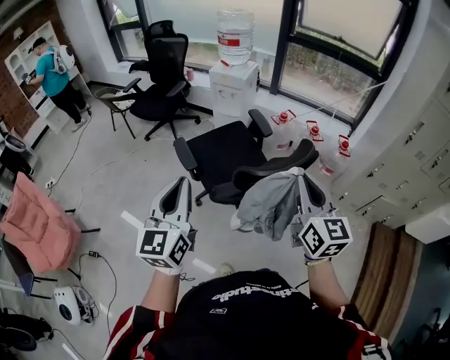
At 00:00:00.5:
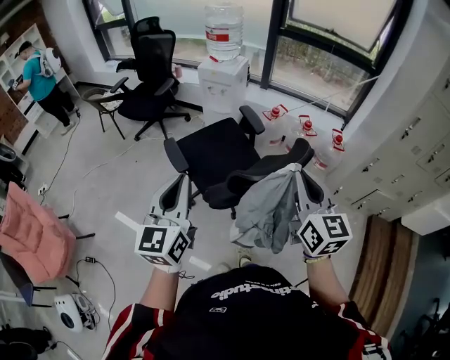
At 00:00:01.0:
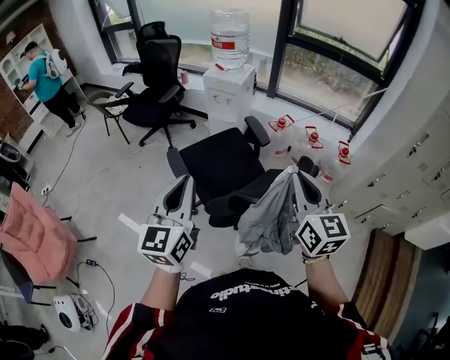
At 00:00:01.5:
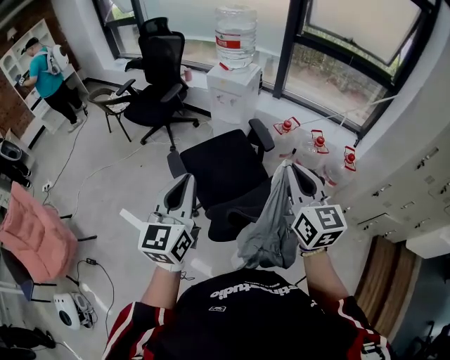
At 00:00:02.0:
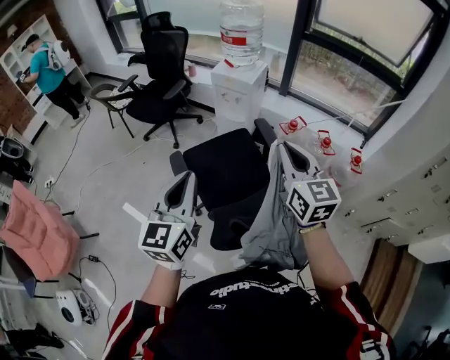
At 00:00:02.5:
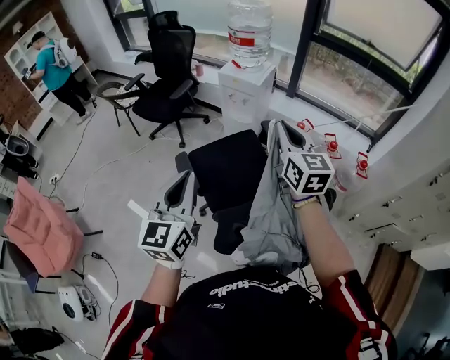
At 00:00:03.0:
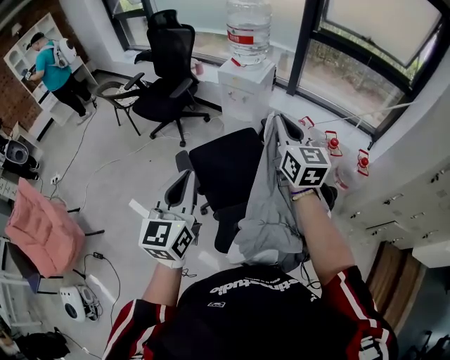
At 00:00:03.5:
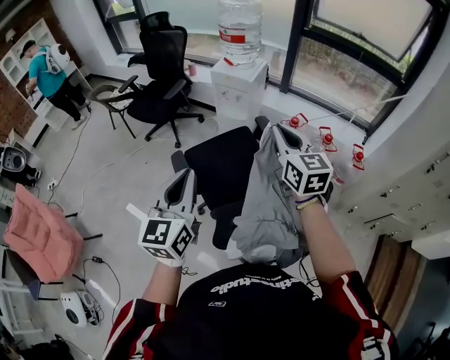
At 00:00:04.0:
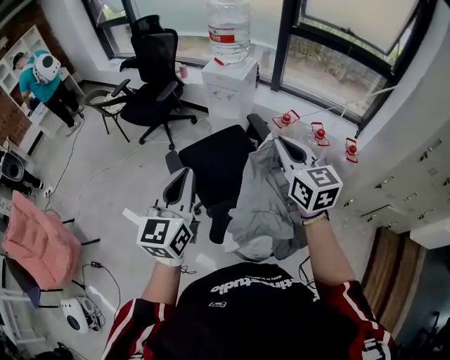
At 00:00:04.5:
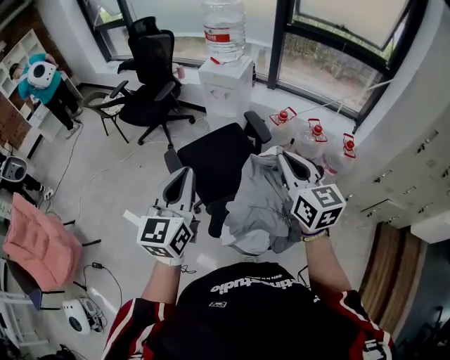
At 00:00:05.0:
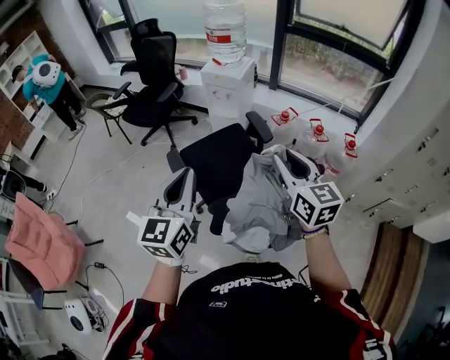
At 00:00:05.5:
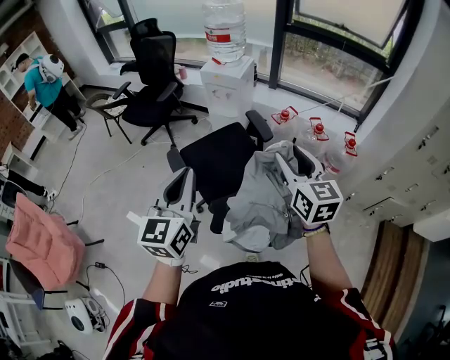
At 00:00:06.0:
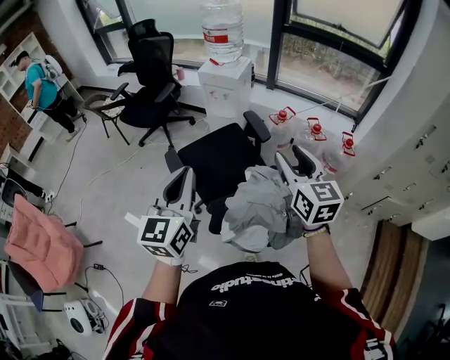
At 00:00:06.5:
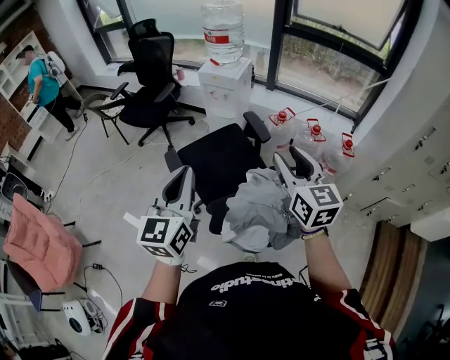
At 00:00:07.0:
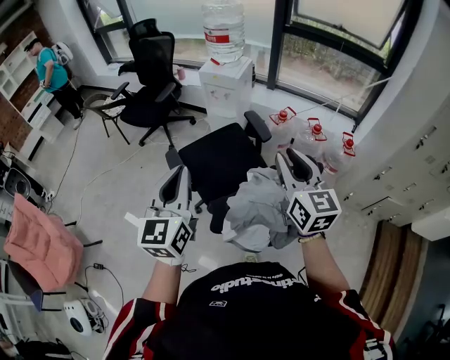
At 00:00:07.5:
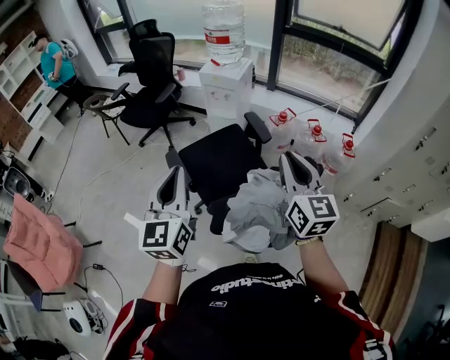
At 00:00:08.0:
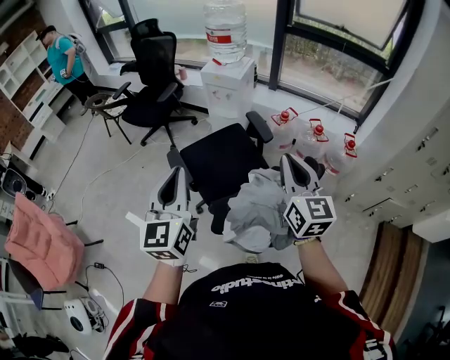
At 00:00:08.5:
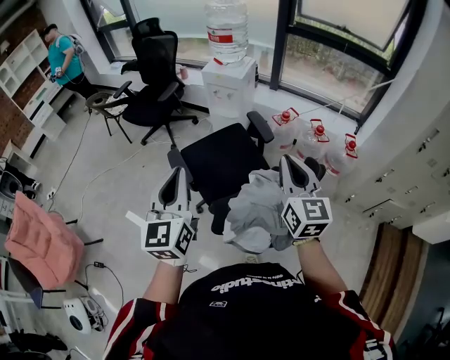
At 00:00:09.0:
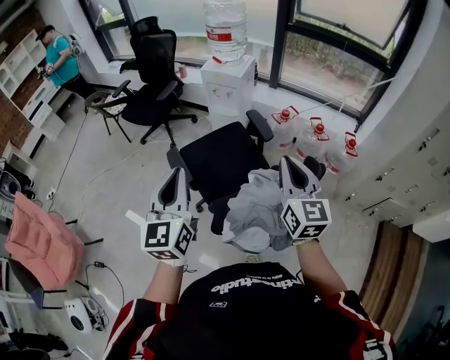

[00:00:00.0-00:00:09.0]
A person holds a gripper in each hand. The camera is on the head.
00:00:00.0 to 00:00:02.0: Both grippers move forward, some 30 cm.
00:00:02.0 to 00:00:04.5: The right gripper moves backward, some 10 cm.
00:00:04.5 to 00:00:07.0: The right gripper opens up.
00:00:07.0 to 00:00:09.0: The right gripper closes.

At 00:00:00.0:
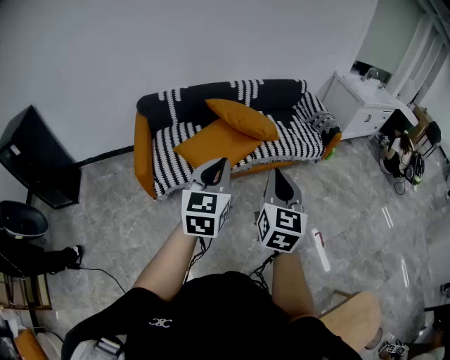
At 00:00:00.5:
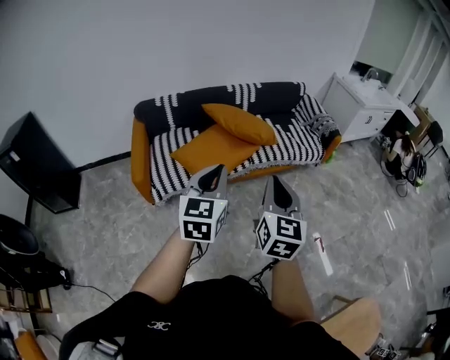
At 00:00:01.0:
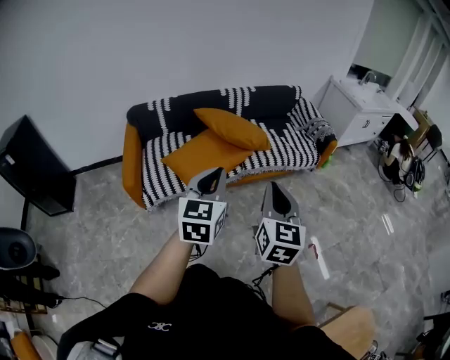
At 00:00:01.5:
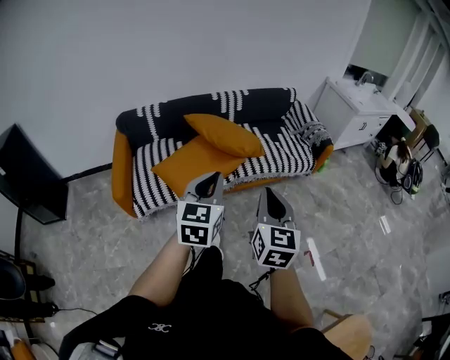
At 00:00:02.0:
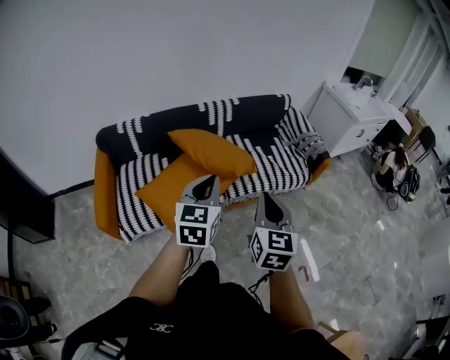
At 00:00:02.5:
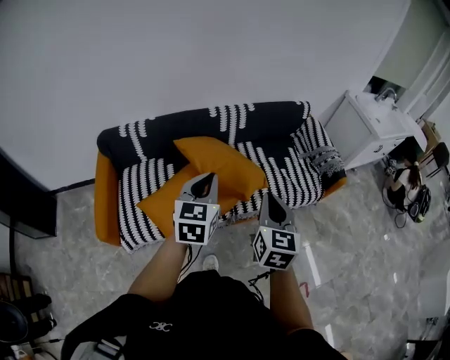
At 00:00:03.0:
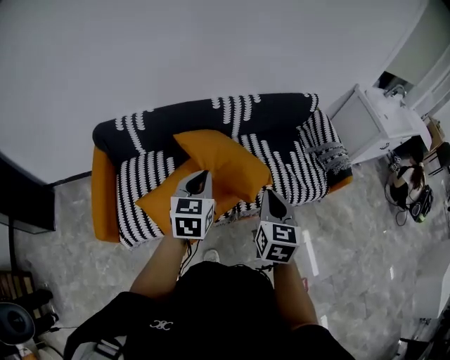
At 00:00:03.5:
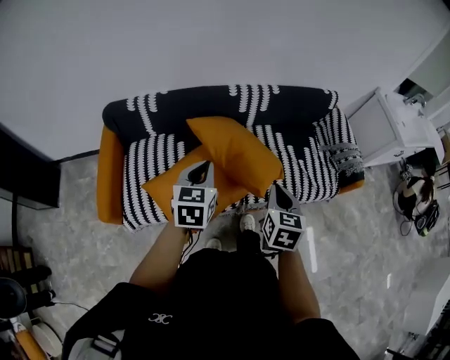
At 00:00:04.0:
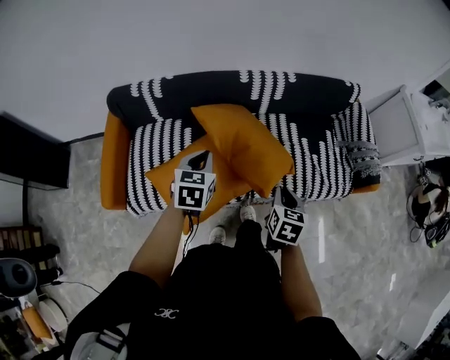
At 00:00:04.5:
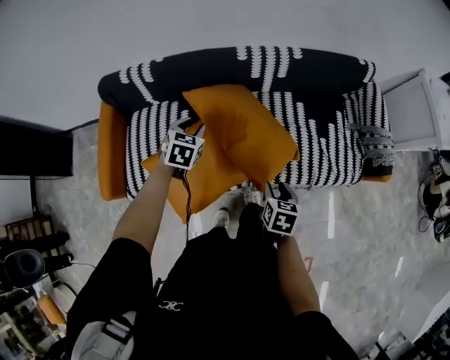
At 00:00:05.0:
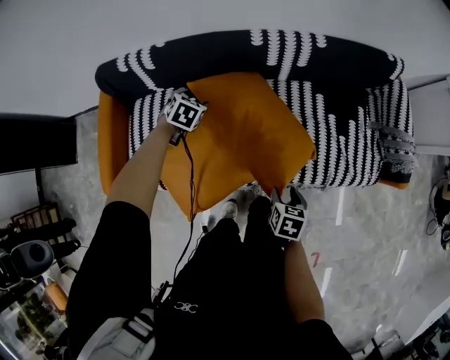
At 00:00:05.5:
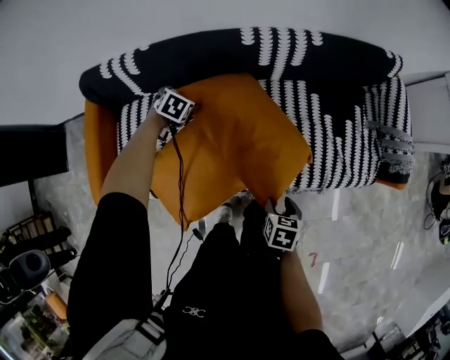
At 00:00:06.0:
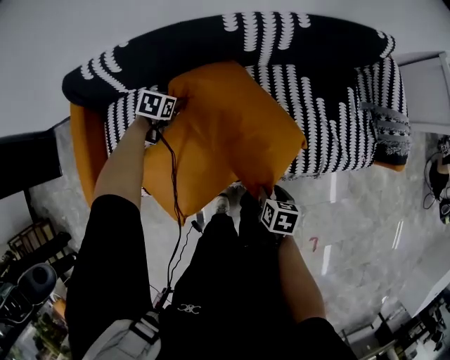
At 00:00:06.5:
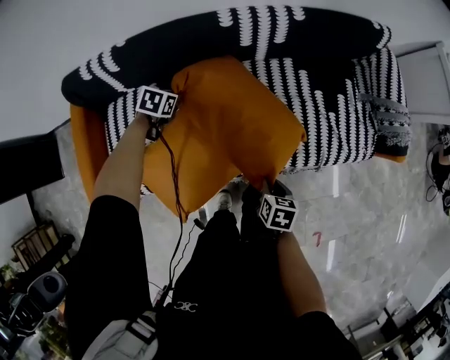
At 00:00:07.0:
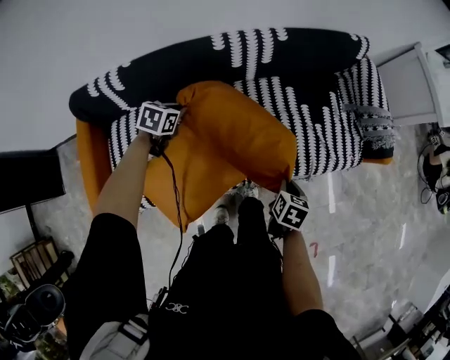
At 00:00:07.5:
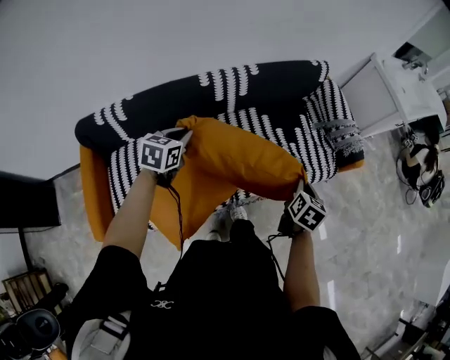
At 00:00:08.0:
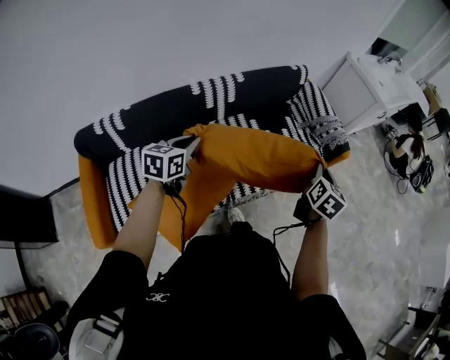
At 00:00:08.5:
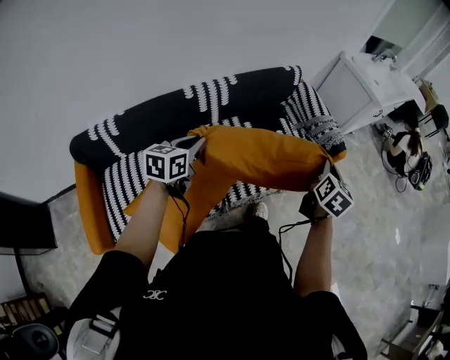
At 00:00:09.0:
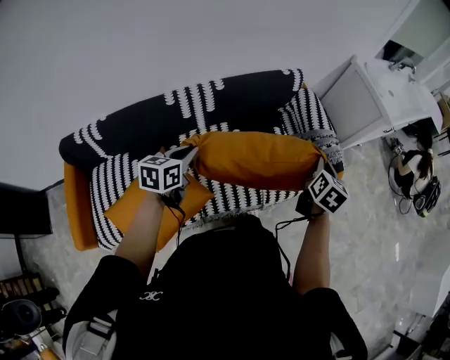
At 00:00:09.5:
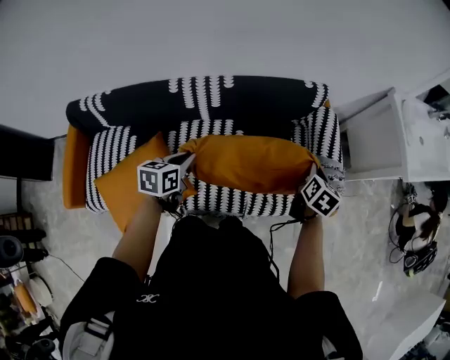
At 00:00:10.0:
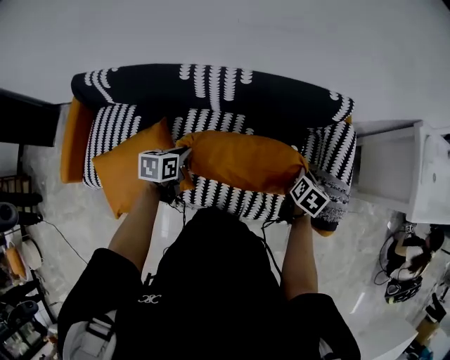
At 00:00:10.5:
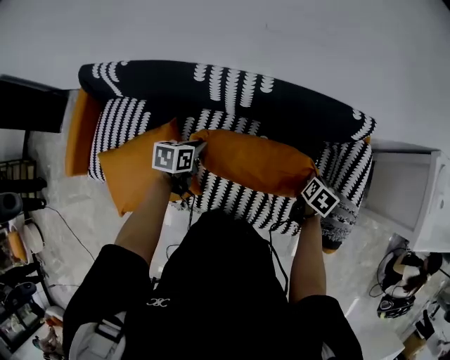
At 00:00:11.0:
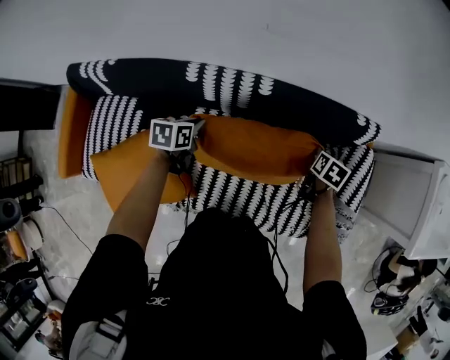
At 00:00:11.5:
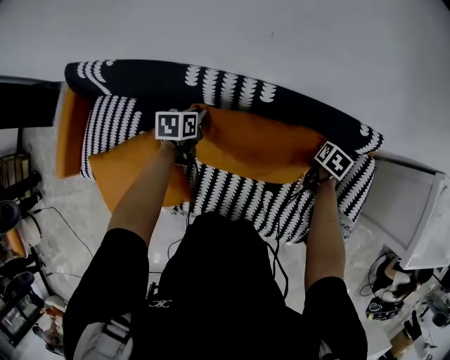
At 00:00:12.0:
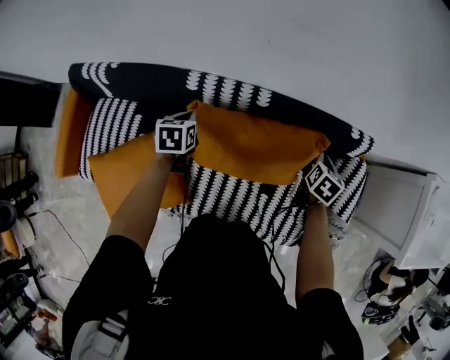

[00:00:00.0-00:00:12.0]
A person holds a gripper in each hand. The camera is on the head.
00:00:00.0 to 00:00:02.0: Both grippers move forward, roughly 30 cm.
00:00:02.0 to 00:00:04.0: The two grippers go about 35 cm forward and downward. The right gripper tilts its fingers some 30 degrees downward, while the left gripper changes its angle by about 30 degrees.
00:00:04.0 to 00:00:06.0: The left gripper is displaced downward and forward by approximately 40 cm, turns by some 30 degrees, and opens up; the right gripper travels downward by some 20 cm, swivels roughly 30 degrees, and opens.
00:00:06.0 to 00:00:08.0: The two grippers go approximately 35 cm upward. The right gripper angles its fingers upward, by roughly 40 degrees, and closes its fingers. The left gripper points its fingers some 40 degrees further upward, and closes its fingers.
00:00:08.0 to 00:00:10.0: The left gripper moves about 30 cm, and rotates roughly 40 degrees; the right gripper moves some 50 cm, and turns by approximately 40 degrees.
00:00:10.0 to 00:00:12.0: The left gripper moves forward and to the left, about 25 cm, and rotates roughly 20 degrees. Meanwhile the right gripper moves forward, about 20 cm.

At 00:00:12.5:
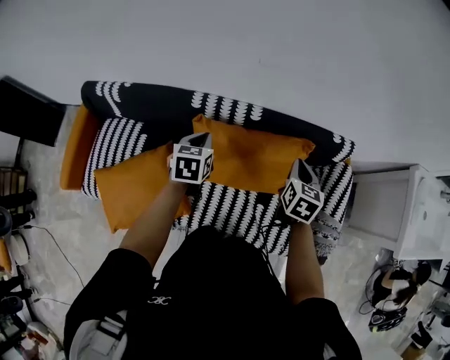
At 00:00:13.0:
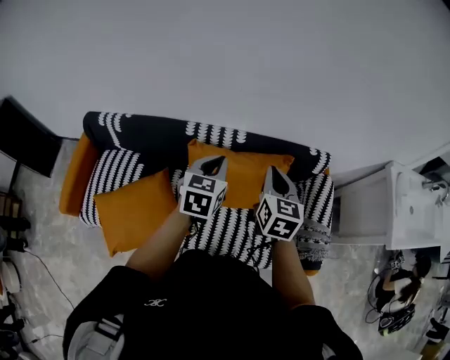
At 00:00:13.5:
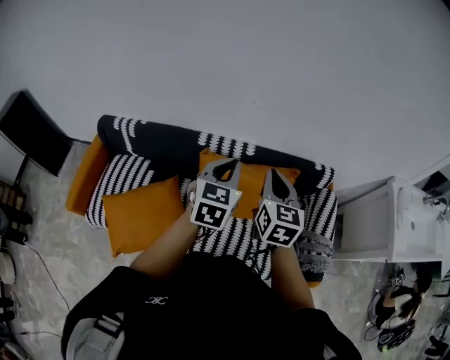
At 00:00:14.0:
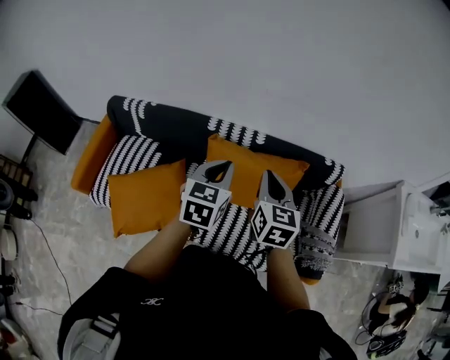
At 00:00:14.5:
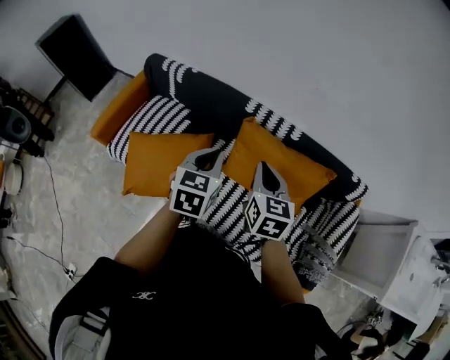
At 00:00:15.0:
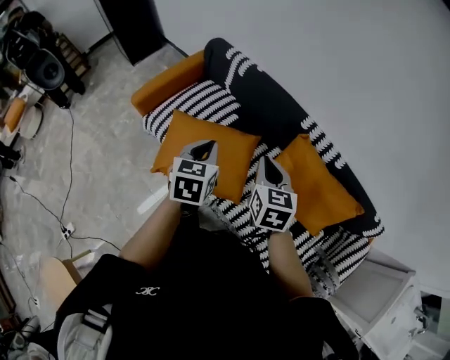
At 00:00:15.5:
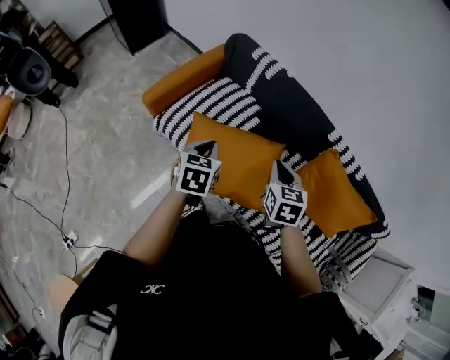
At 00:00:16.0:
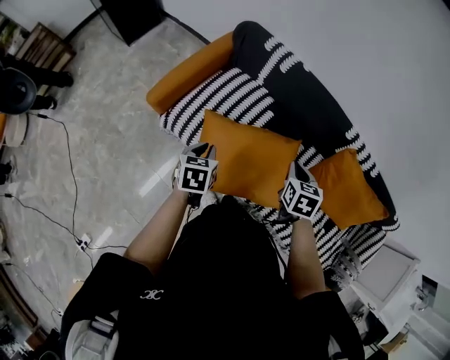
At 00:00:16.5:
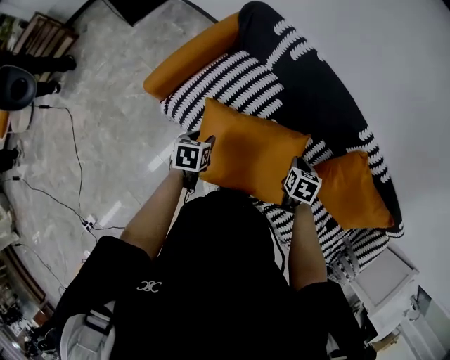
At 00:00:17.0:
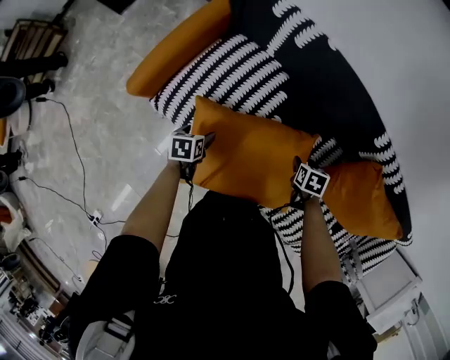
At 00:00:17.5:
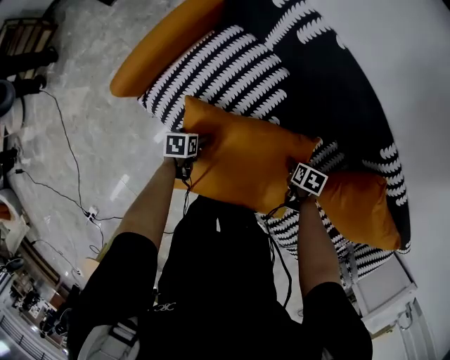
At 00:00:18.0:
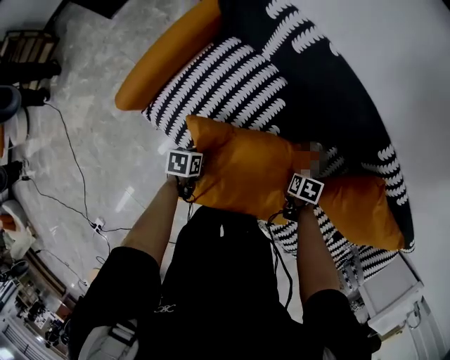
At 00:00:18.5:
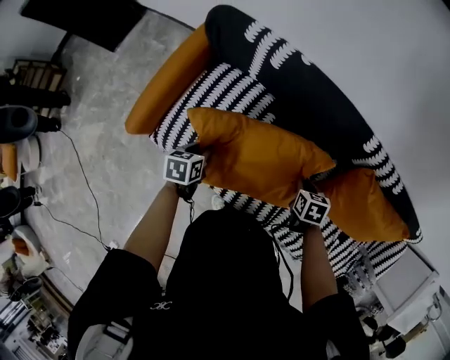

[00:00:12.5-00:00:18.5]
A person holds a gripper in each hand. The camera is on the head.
00:00:12.5 to 00:00:14.5: The left gripper moves backward and upward, some 25 cm. Meanwhile the right gripper goes roughly 30 cm to the left, backward and upward, and rotates approximately 30 degrees.
00:00:14.5 to 00:00:16.5: The right gripper goes approximately 40 cm to the left, downward and forward, and tips its fingers downward by roughly 40 degrees, while the left gripper moves to the left and downward, some 60 cm, swivels roughly 40 degrees, and opens up.
00:00:16.5 to 00:00:18.5: The left gripper moves some 20 cm downward and comes back, and opens and closes again. Meanwhile the right gripper heads downward, covering about 5 cm, and opens, then closes again.
